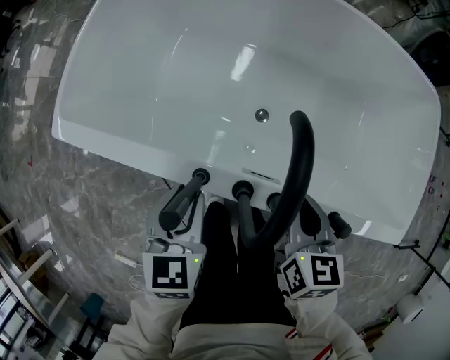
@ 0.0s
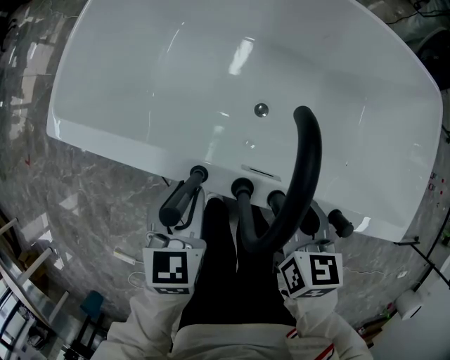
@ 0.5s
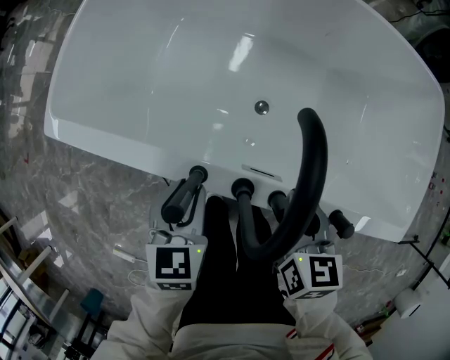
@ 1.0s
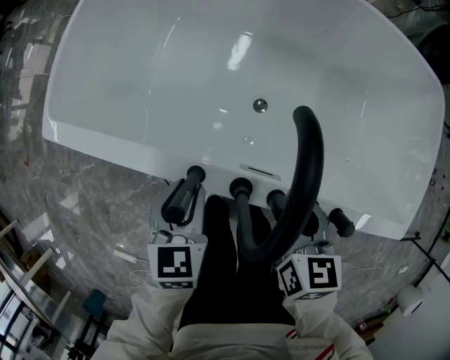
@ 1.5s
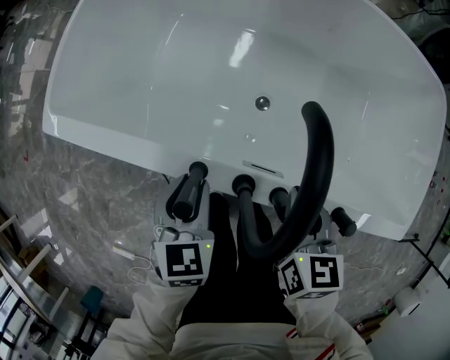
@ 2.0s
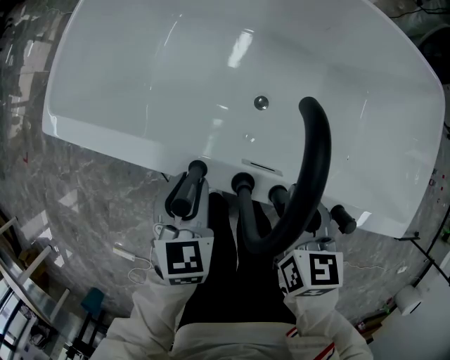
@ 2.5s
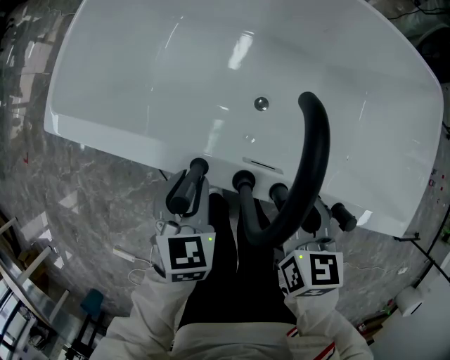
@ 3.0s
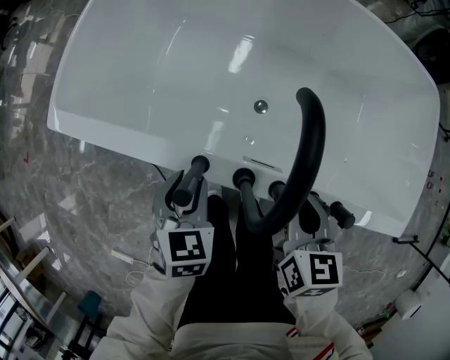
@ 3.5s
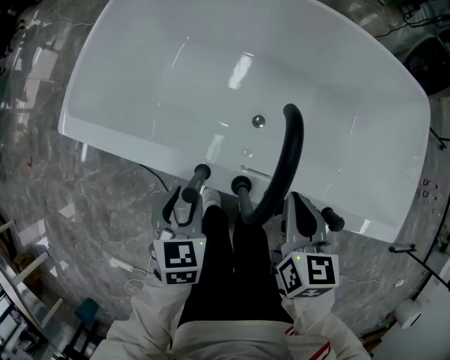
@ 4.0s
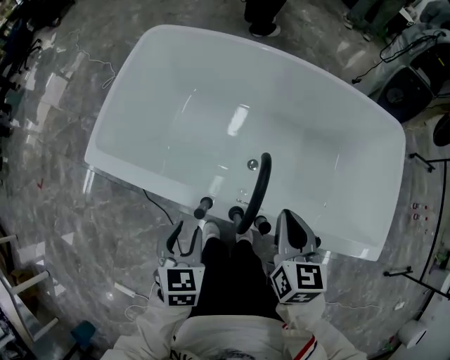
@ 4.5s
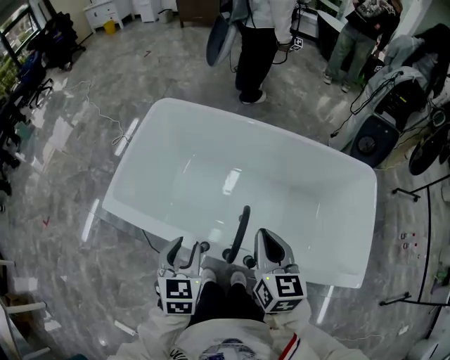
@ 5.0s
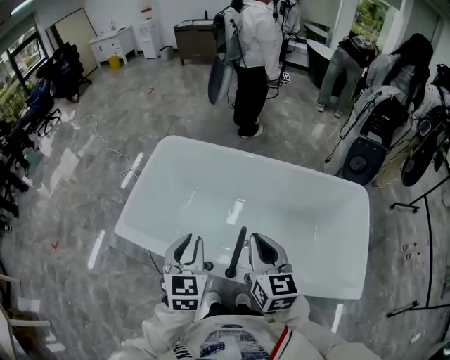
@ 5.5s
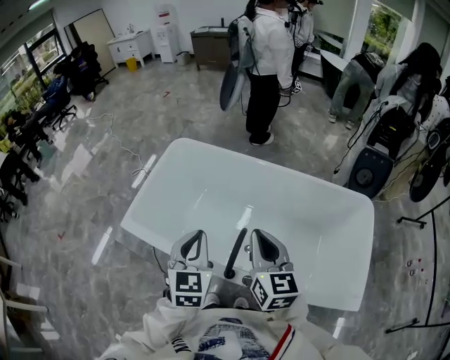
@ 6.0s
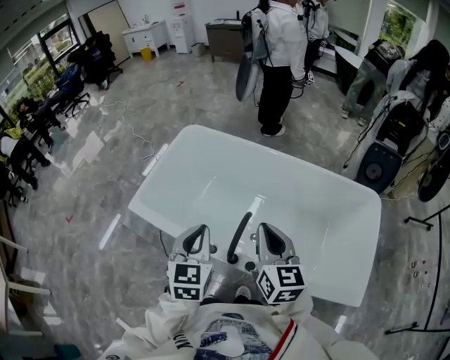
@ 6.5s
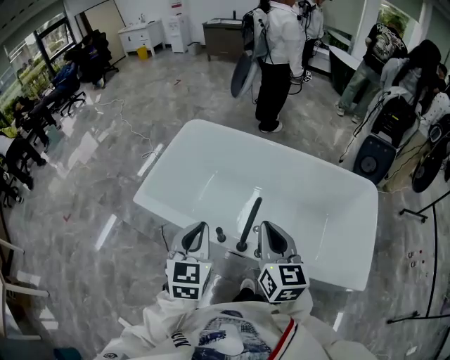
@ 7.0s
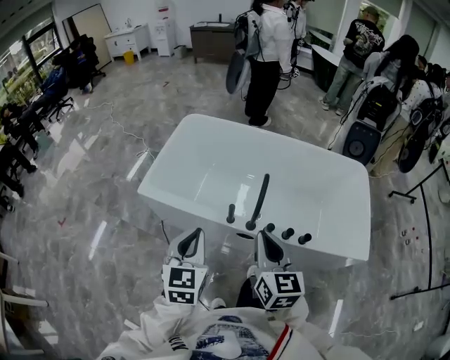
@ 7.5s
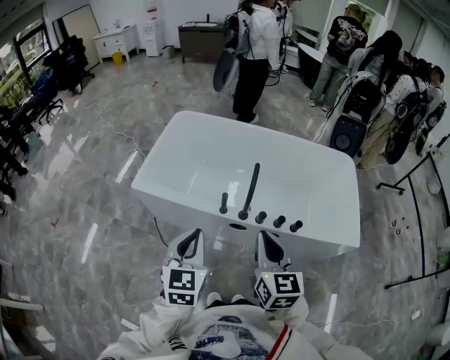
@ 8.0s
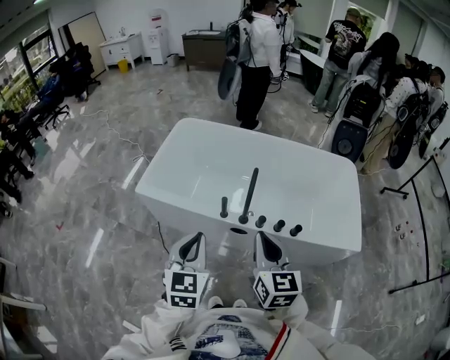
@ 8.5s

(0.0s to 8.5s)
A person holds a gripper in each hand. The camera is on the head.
0.0s - 2.0s: The left gripper shifts by about 5 cm.
2.0s - 4.0s: The grippers move only a little.
4.0s - 6.5s: Both grippers move upward, roughly 35 cm. The left gripper turns by about 30 degrees, and closes. The right gripper changes its angle by about 30 degrees.
6.5s - 8.5s: The right gripper shifts about 25 cm backward. Meanwhile the left gripper is displaced backward and to the left by approximately 25 cm.

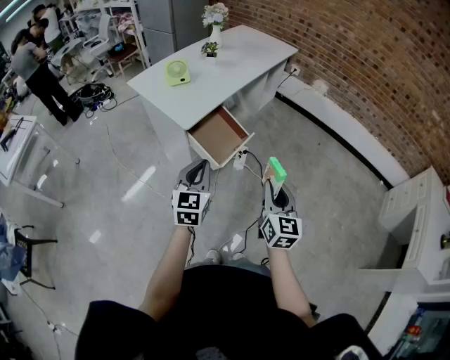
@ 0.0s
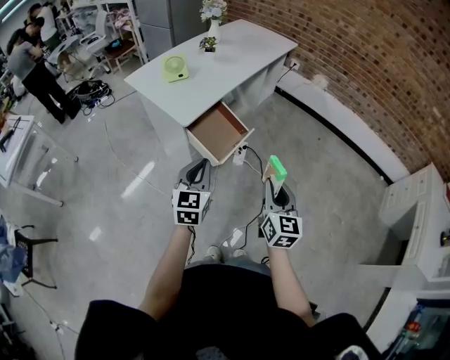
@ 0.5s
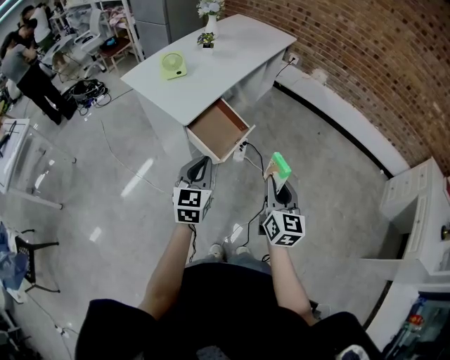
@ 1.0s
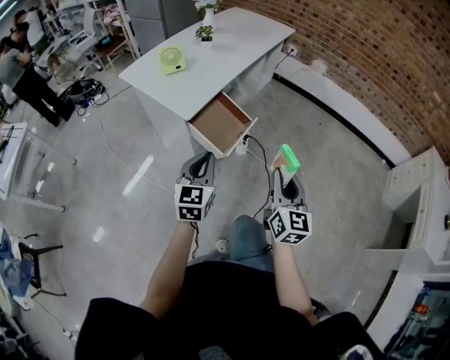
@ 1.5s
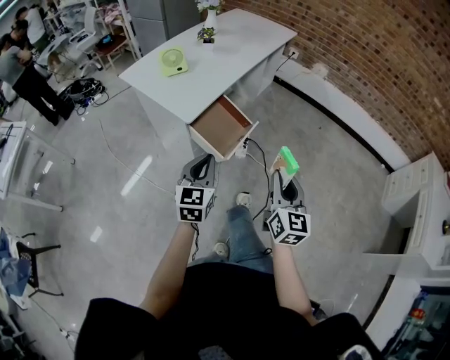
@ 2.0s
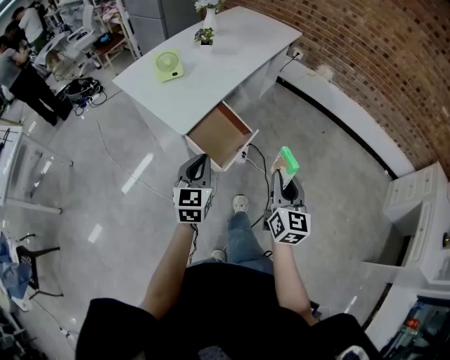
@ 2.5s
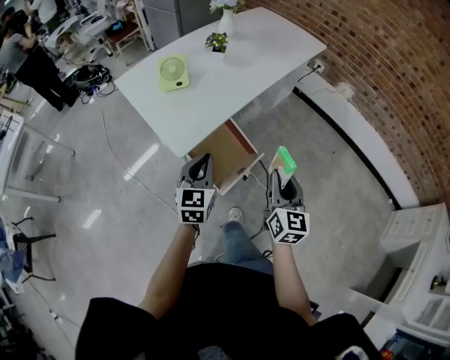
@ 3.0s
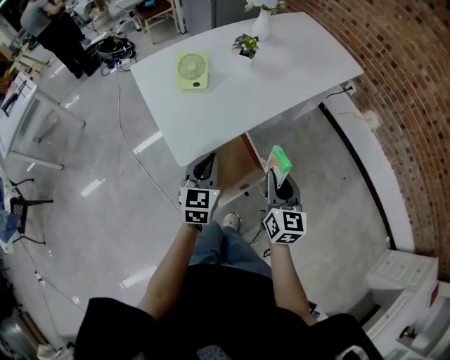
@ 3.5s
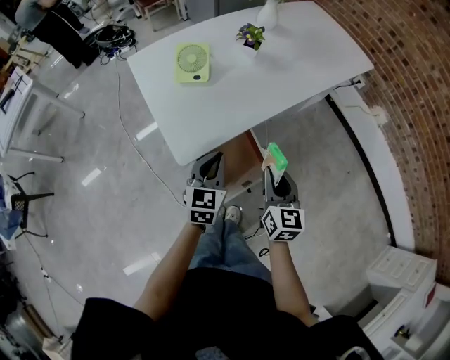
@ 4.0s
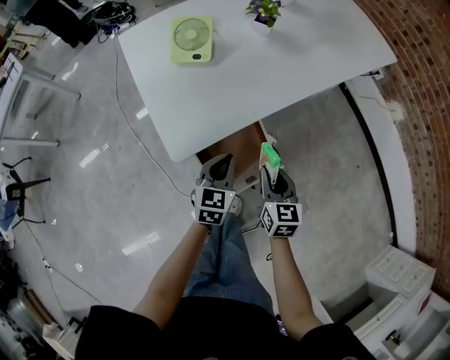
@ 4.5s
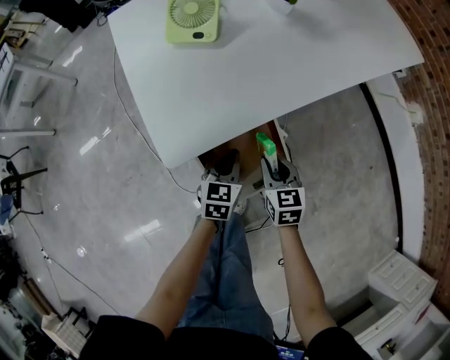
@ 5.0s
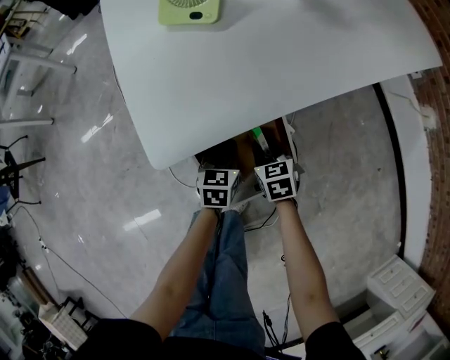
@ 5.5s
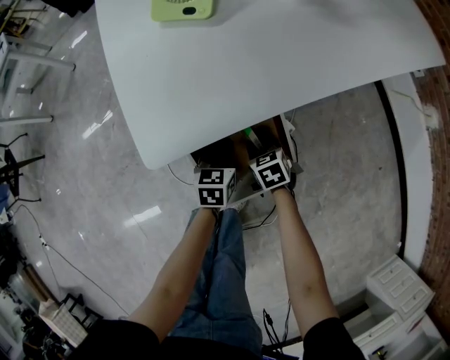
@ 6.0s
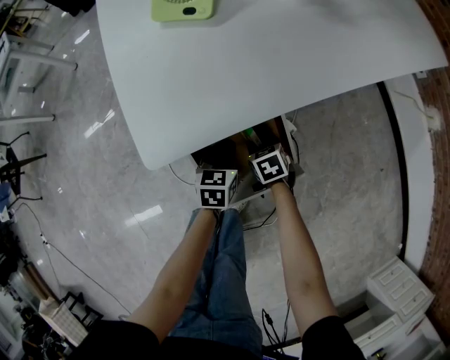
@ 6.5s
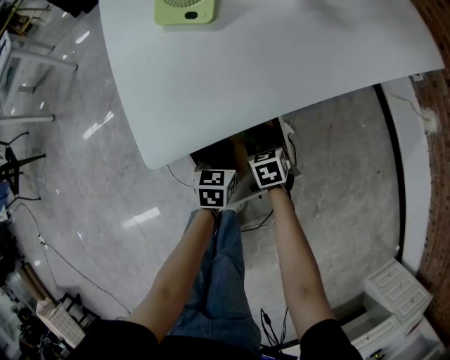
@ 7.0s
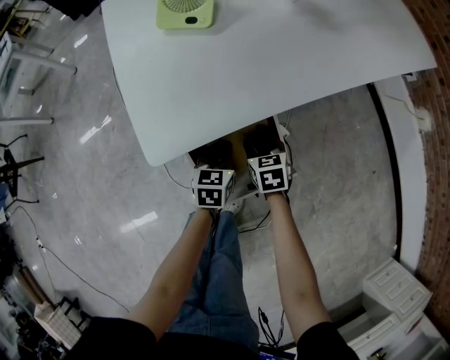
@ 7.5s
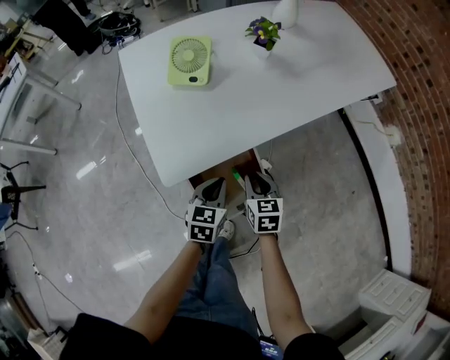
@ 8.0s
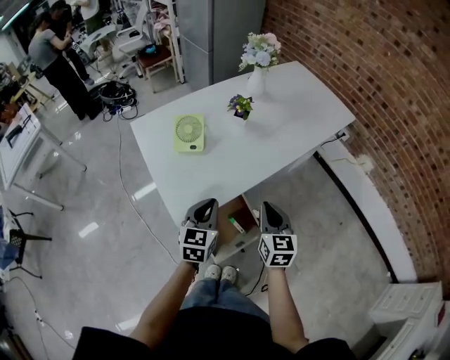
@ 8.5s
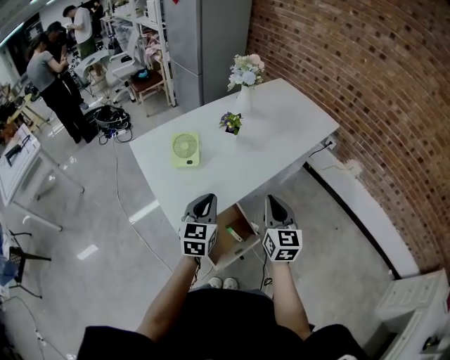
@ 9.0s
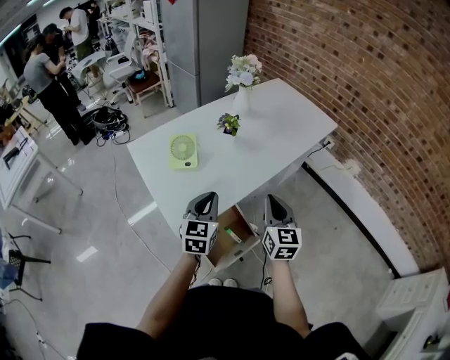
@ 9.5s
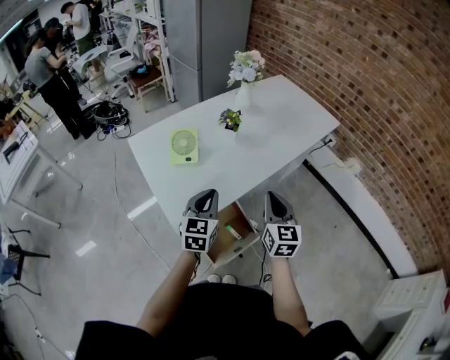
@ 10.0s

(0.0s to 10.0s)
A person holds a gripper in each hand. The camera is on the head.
0.0s - 2.0s: The left gripper changes place by some 5 cm.
2.0s - 4.0s: Both grippers travel together forward, about 40 cm. The right gripper turns by approximately 30 degrees, while the left gripper turns by some 20 degrees.
4.0s - 6.0s: The grippers both shift downward by some 35 cm. The right gripper tilts its fingers about 40 degrees downward. The left gripper rotates about 30 degrees.
6.0s - 8.0s: The grippers both shift upward by roughly 20 cm. The right gripper changes its angle by about 30 degrees, and opens, then closes again.
8.0s - 10.0s: Both grippers move upward, about 25 cm. The right gripper swivels about 30 degrees; the left gripper turns by roughly 20 degrees.

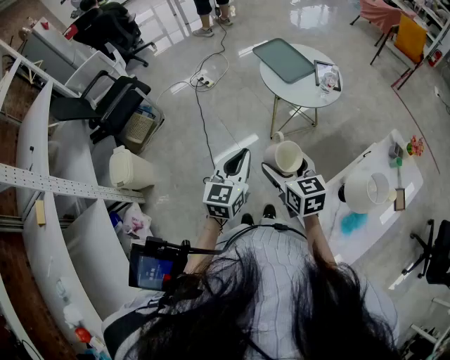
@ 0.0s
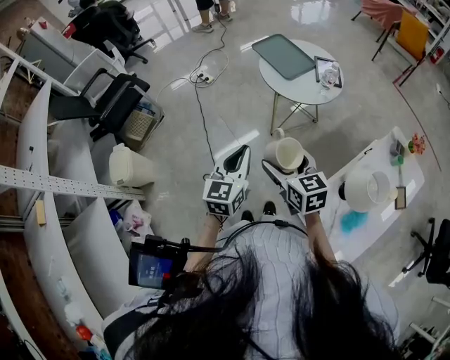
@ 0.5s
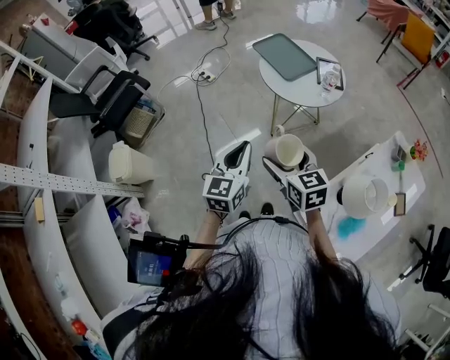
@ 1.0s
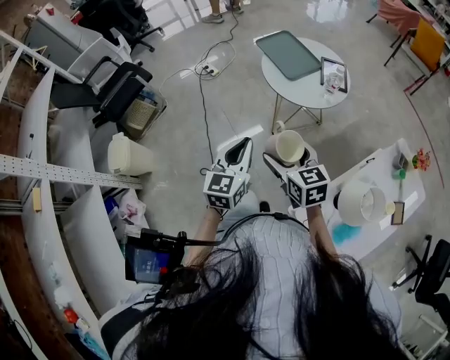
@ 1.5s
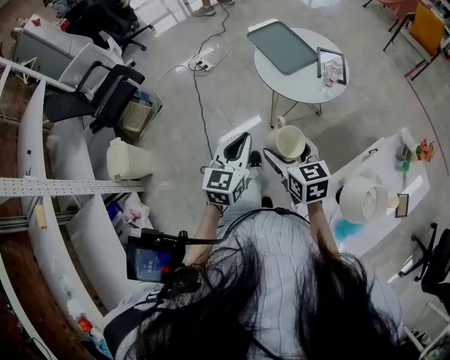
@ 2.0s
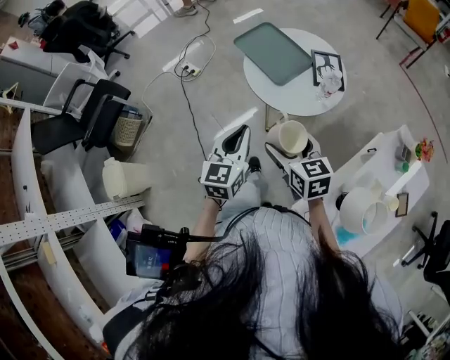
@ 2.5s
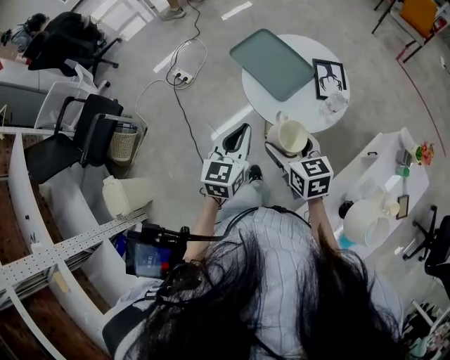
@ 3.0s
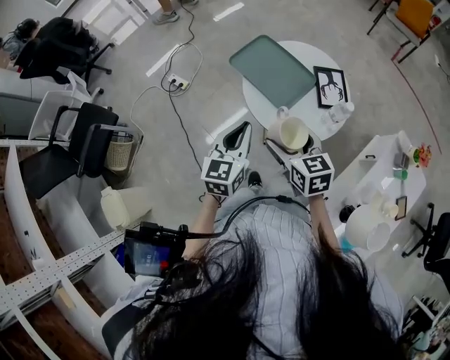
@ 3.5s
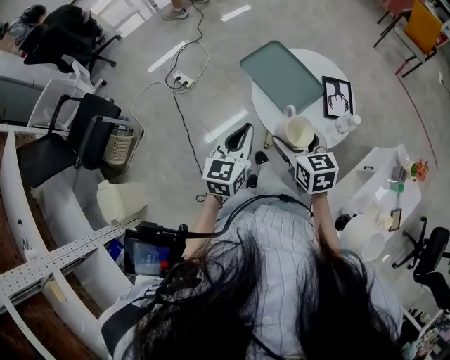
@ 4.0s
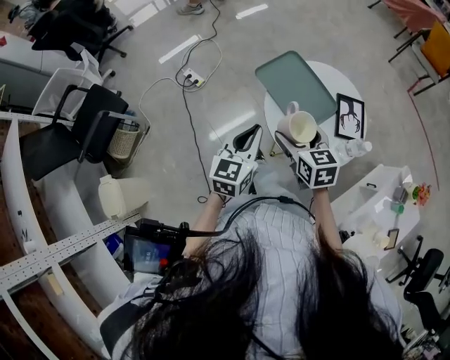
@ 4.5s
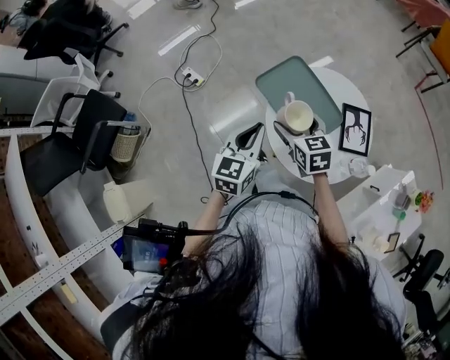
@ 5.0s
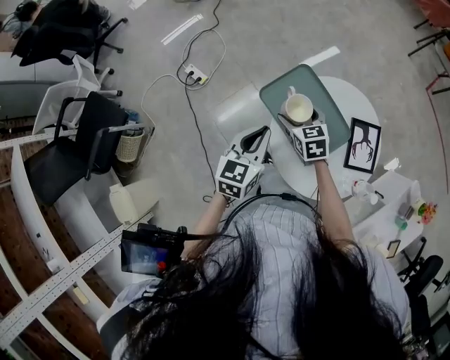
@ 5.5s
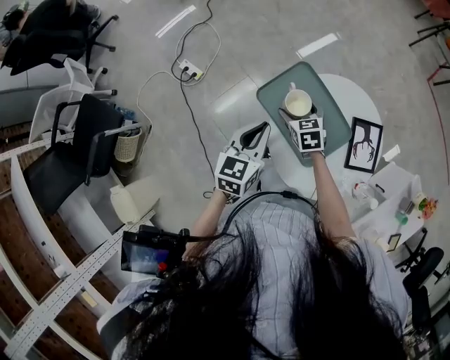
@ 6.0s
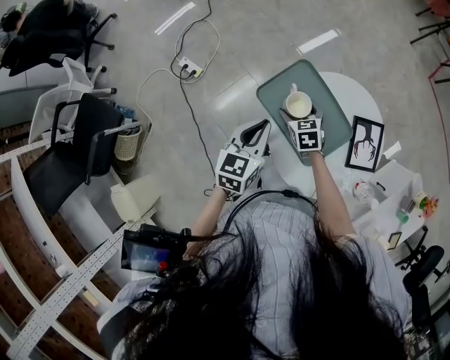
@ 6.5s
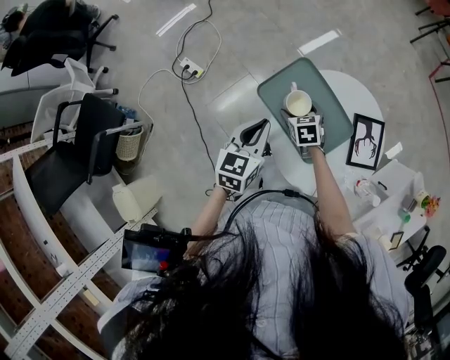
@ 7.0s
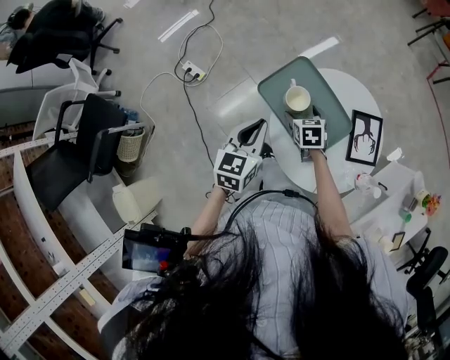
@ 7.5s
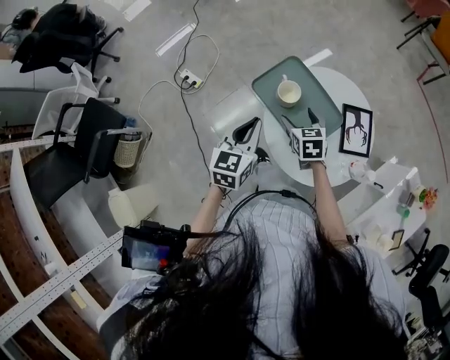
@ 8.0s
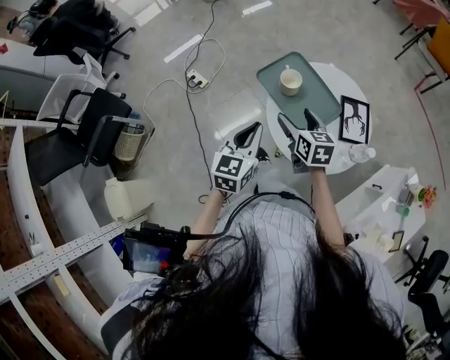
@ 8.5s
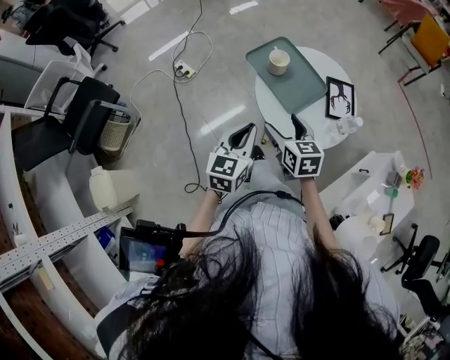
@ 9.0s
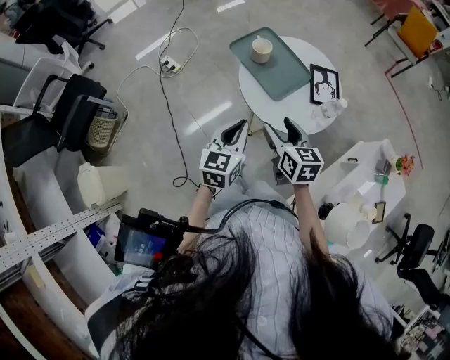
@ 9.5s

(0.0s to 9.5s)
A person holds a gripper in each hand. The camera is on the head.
0.0s - 2.0s: Both grippers move forward and to the right, some 10 cm.
2.0s - 4.0s: The grippers both shift forward by about 30 cm.
4.0s - 5.5s: The left gripper travels forward by some 20 cm. The right gripper moves forward and downward, some 30 cm.
5.5s - 7.5s: The right gripper heads downward, covering approximately 10 cm.
7.5s - 9.5s: The left gripper shifts approximately 25 cm backward; the right gripper travels backward and upward by approximately 35 cm, and changes its angle by roughly 30 degrees.
